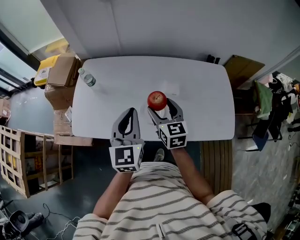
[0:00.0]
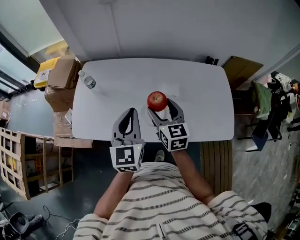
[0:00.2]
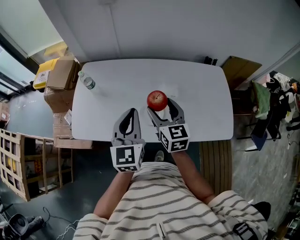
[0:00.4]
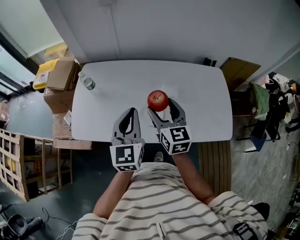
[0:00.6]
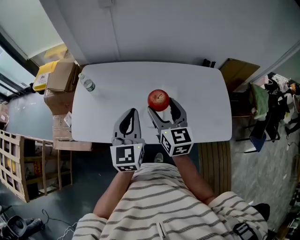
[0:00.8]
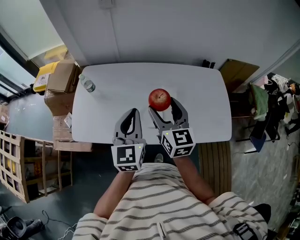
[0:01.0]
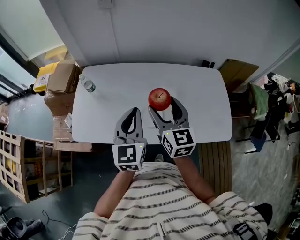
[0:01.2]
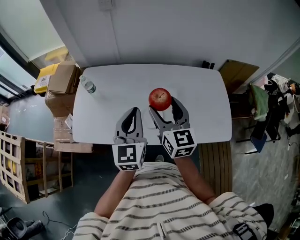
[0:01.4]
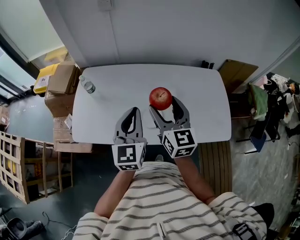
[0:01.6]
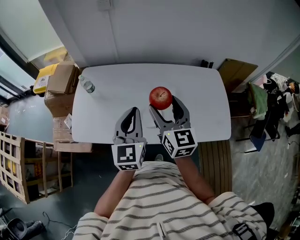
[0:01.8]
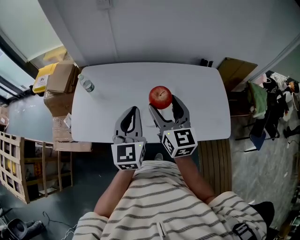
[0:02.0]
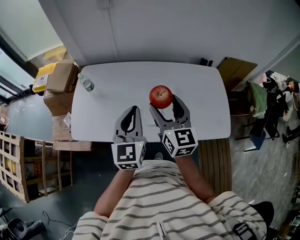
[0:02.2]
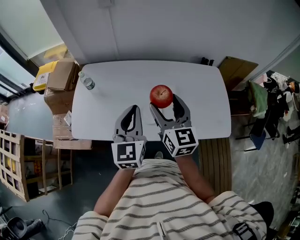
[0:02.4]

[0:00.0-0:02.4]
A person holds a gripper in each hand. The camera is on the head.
0:00.0 to 0:01.2: The right gripper travels upward by approximately 10 cm.
0:01.2 to 0:02.4: The grippers make only small movements.

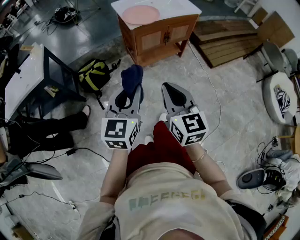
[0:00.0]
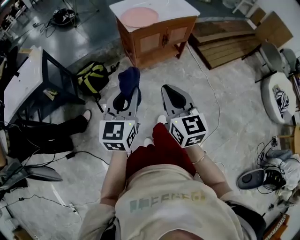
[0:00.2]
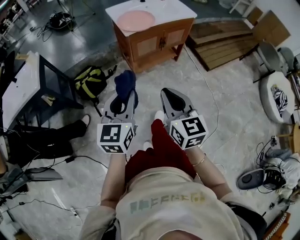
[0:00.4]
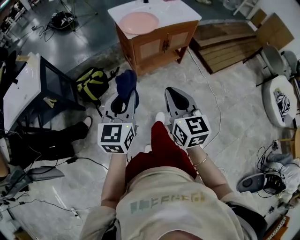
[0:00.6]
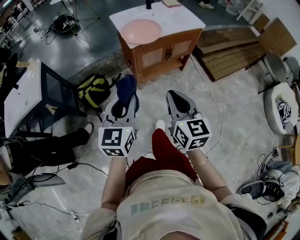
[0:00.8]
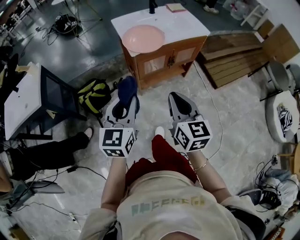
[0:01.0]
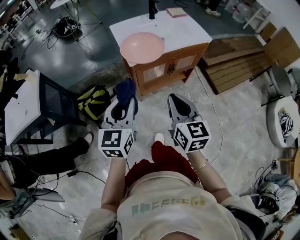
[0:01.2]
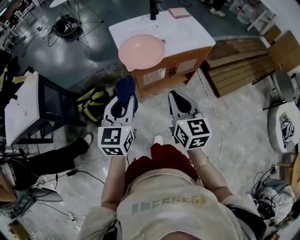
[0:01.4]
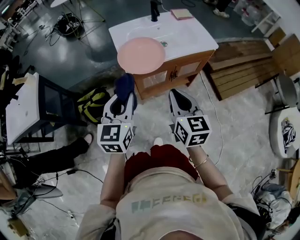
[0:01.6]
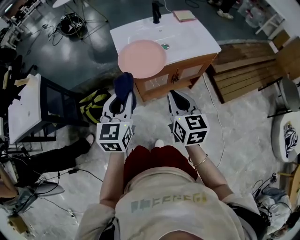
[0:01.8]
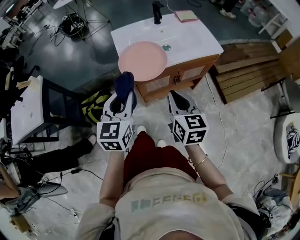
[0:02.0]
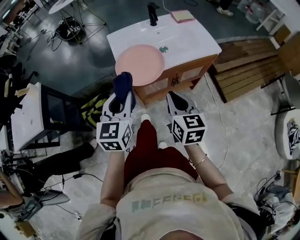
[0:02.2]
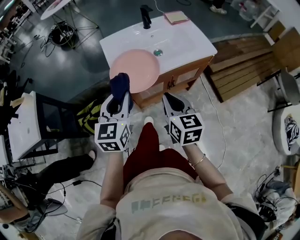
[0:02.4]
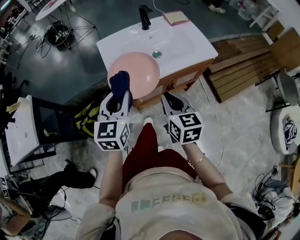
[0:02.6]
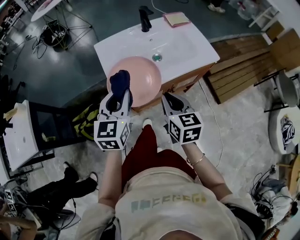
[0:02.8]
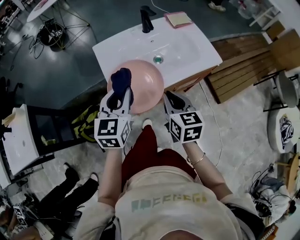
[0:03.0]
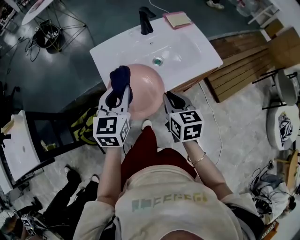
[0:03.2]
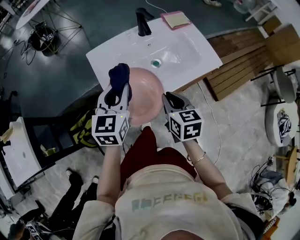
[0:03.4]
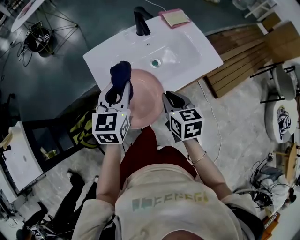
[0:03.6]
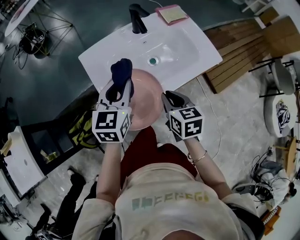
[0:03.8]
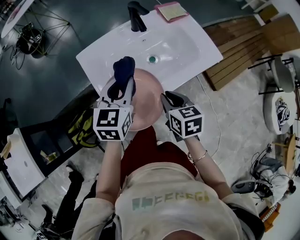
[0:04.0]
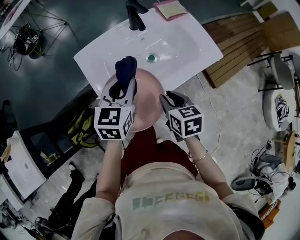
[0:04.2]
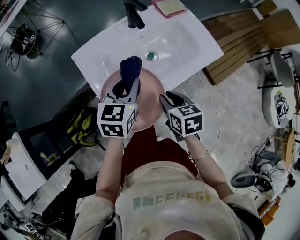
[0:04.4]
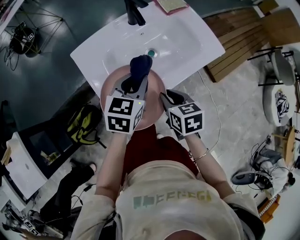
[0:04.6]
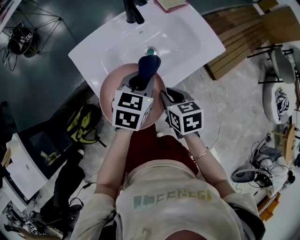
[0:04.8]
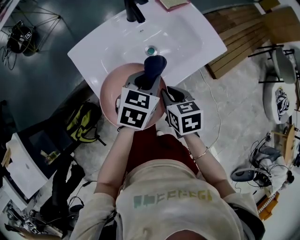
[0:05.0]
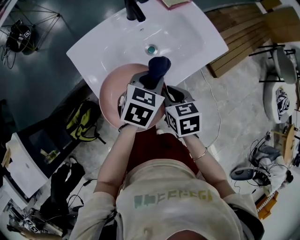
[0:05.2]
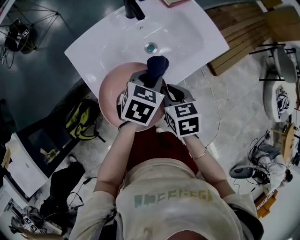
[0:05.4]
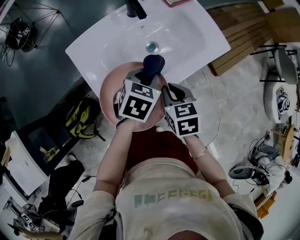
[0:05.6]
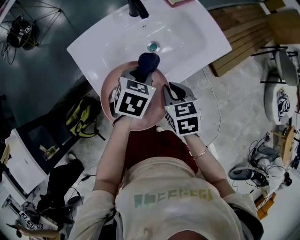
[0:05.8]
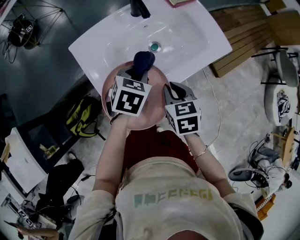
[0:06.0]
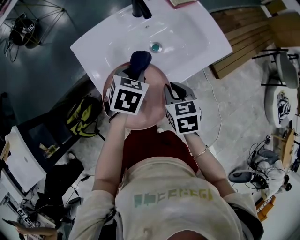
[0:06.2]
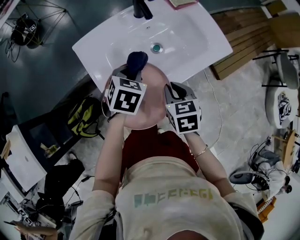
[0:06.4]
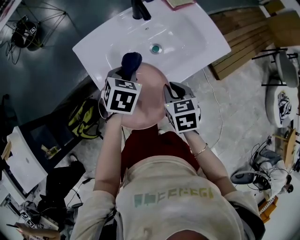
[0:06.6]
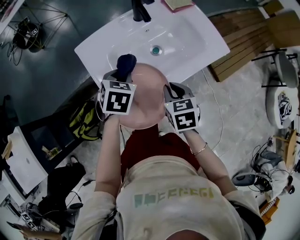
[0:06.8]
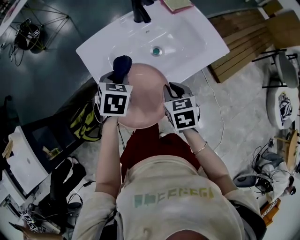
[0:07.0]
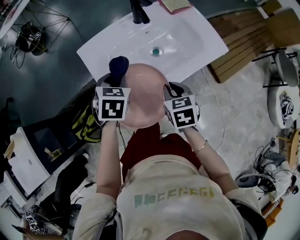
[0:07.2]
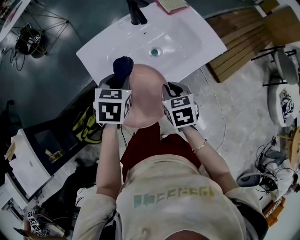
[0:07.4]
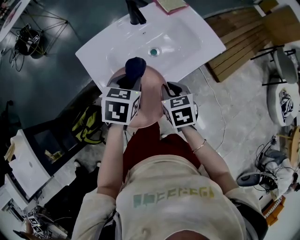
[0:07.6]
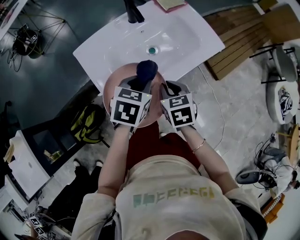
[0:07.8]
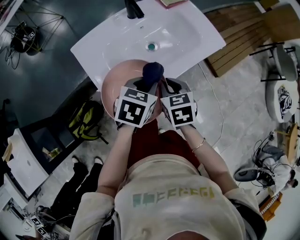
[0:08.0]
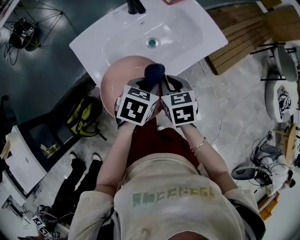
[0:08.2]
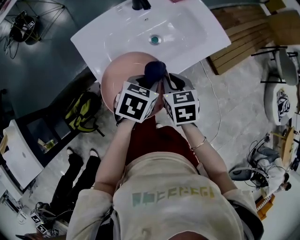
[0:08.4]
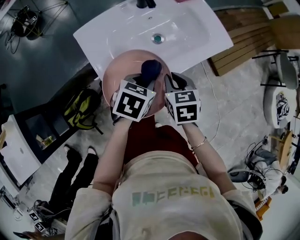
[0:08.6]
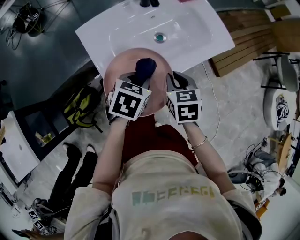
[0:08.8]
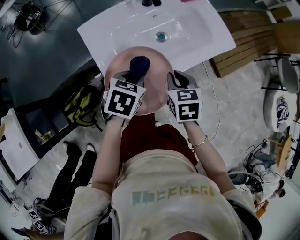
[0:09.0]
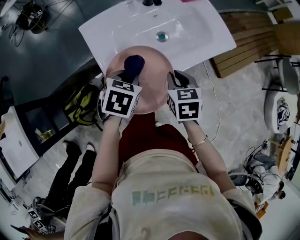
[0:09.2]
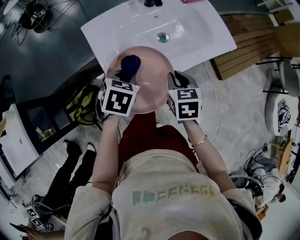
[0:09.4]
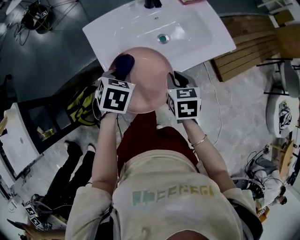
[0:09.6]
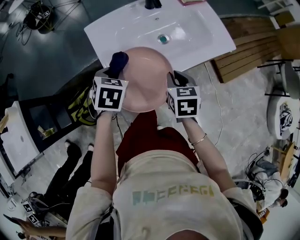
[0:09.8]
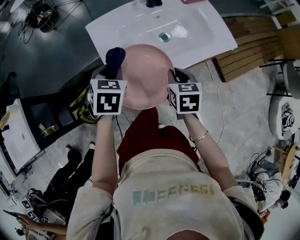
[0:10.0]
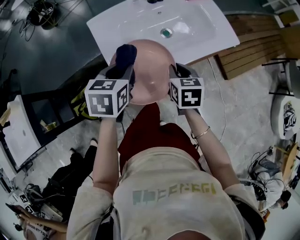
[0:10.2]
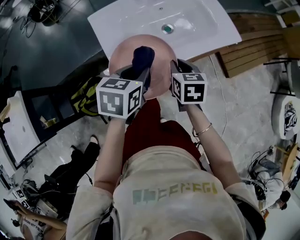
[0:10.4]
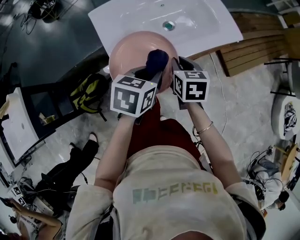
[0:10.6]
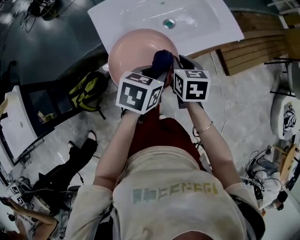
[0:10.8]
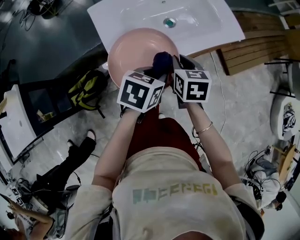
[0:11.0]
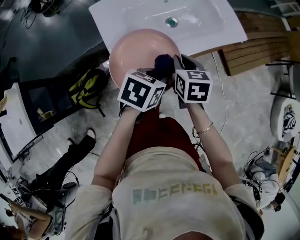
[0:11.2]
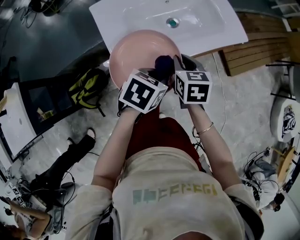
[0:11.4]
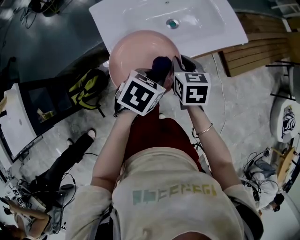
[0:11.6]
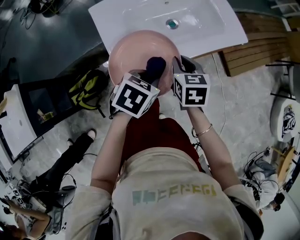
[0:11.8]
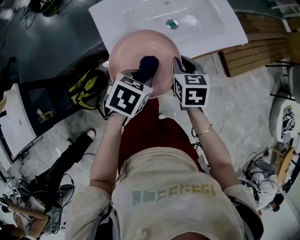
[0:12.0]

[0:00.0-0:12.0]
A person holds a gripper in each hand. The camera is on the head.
0:00.0 to 0:01.6: Both grippers move forward, roughly 35 cm.
0:01.6 to 0:03.0: The two grippers go about 20 cm forward.
0:03.0 to 0:04.4: The right gripper moves downward and forward, about 10 cm, and rotates some 20 degrees. Meanwhile the left gripper goes about 15 cm forward and downward.
0:04.4 to 0:06.0: The left gripper shifts some 10 cm downward, travels to the right and back again, roughly 10 cm each way, and rotates approximately 30 degrees.
0:06.0 to 0:07.6: The left gripper is displaced upward by some 5 cm, and moves approximately 10 cm to the left and comes back.
0:07.6 to 0:09.0: The left gripper goes approximately 5 cm downward.
0:09.0 to 0:10.4: The left gripper shifts approximately 5 cm upward, and travels to the left and back again, approximately 10 cm each way.
0:10.4 to 0:12.0: The left gripper goes roughly 5 cm downward, and rotates roughly 20 degrees.

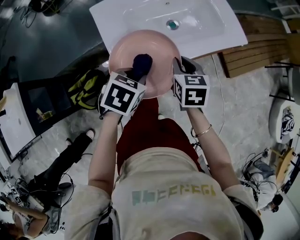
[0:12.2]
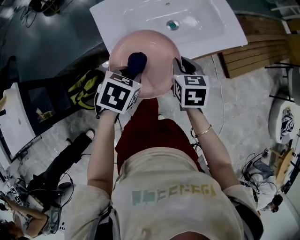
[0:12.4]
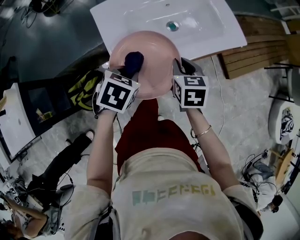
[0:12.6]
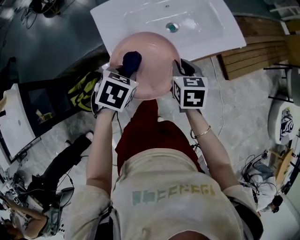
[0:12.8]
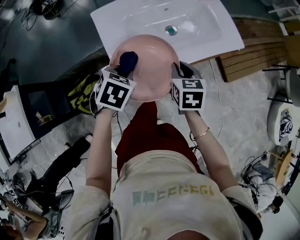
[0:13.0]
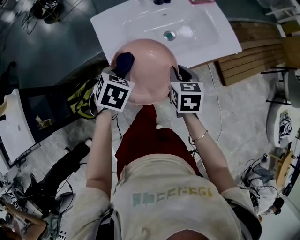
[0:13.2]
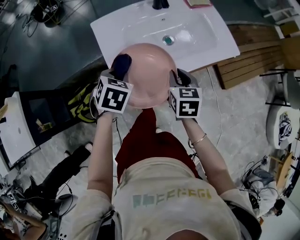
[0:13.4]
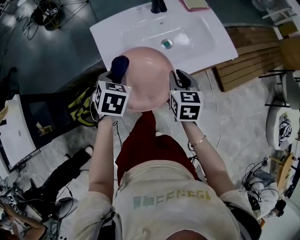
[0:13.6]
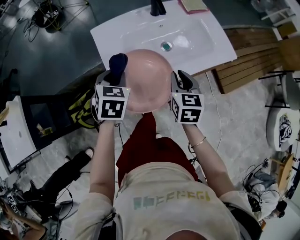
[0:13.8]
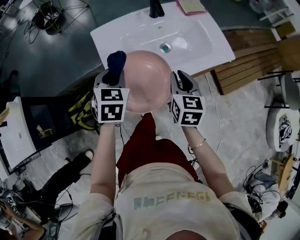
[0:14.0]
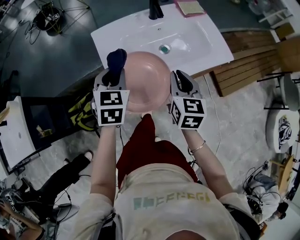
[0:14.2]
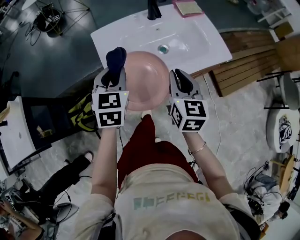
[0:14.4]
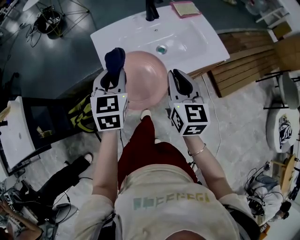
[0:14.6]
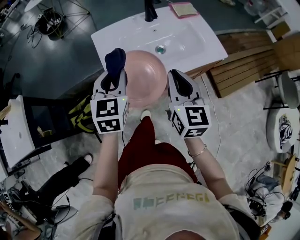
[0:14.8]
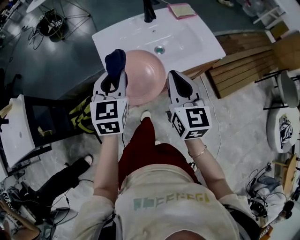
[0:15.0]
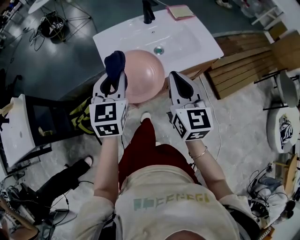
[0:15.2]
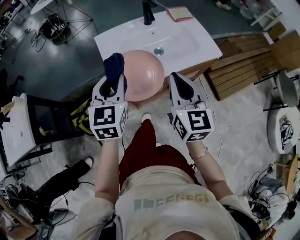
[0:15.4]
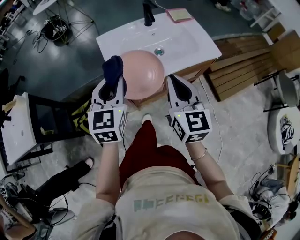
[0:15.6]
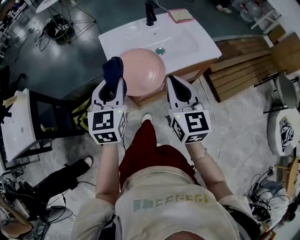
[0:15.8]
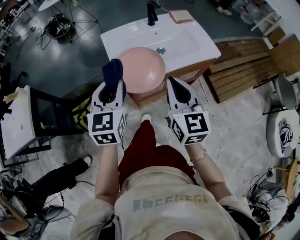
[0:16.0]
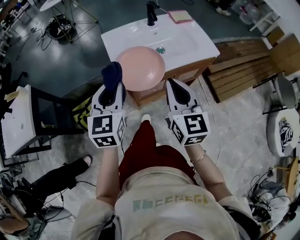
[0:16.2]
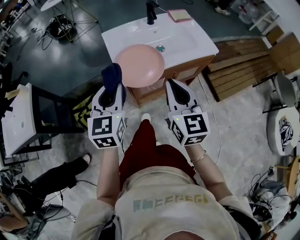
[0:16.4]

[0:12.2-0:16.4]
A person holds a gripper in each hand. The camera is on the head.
0:12.2 to 0:13.6: The left gripper is displaced to the left and forward by roughly 10 cm, and swivels about 20 degrees.
0:13.6 to 0:15.0: The right gripper goes some 15 cm upward and backward, and turns by roughly 30 degrees. Meanwhile the left gripper shifts about 15 cm upward, and tips its fingers upward by some 30 degrees.
0:15.0 to 0:16.4: Both grippers move backward, some 15 cm.

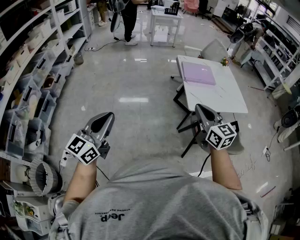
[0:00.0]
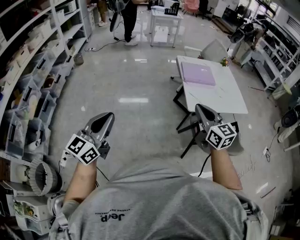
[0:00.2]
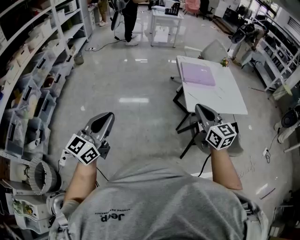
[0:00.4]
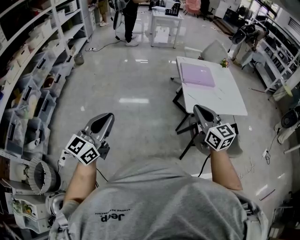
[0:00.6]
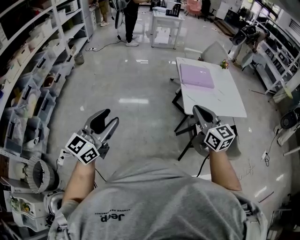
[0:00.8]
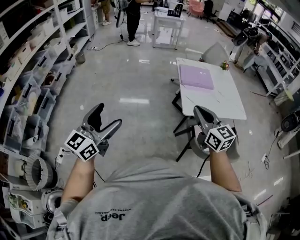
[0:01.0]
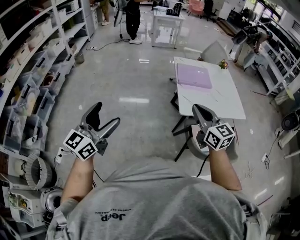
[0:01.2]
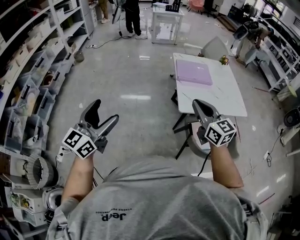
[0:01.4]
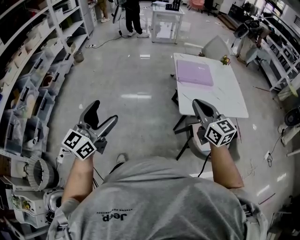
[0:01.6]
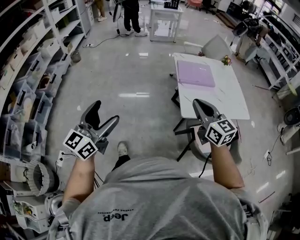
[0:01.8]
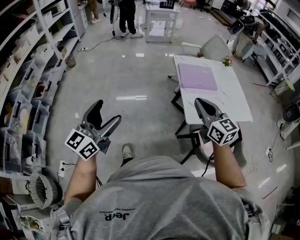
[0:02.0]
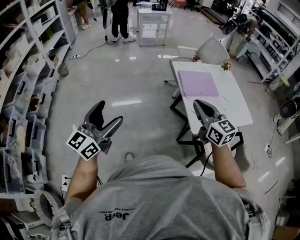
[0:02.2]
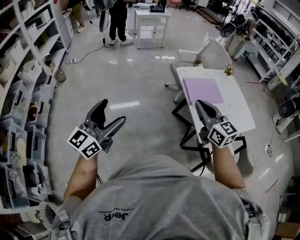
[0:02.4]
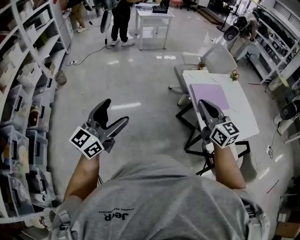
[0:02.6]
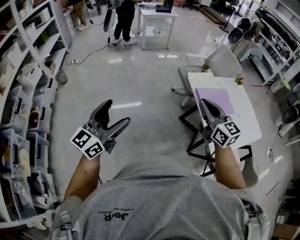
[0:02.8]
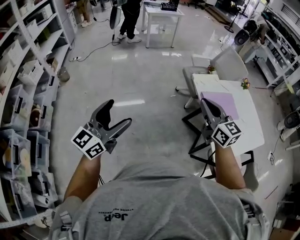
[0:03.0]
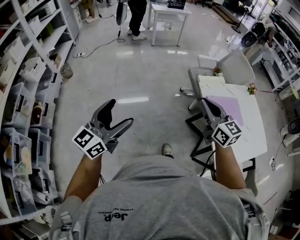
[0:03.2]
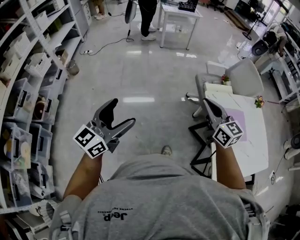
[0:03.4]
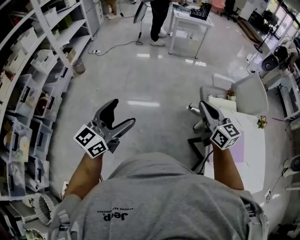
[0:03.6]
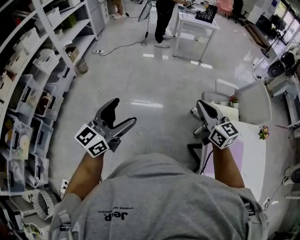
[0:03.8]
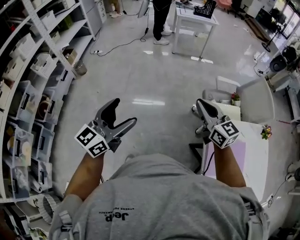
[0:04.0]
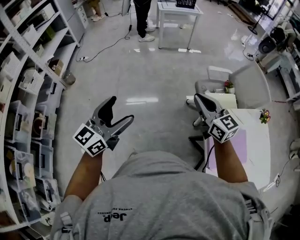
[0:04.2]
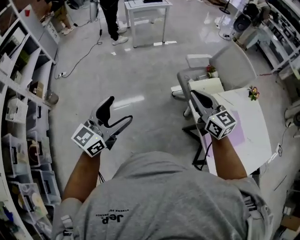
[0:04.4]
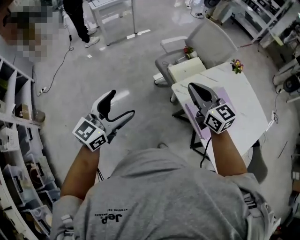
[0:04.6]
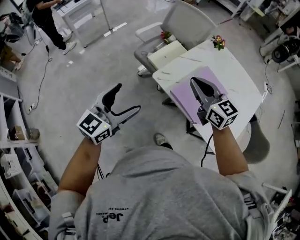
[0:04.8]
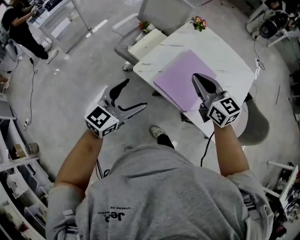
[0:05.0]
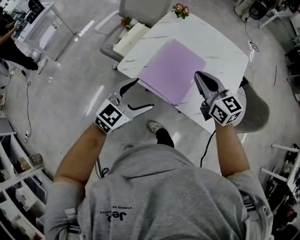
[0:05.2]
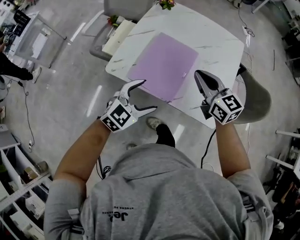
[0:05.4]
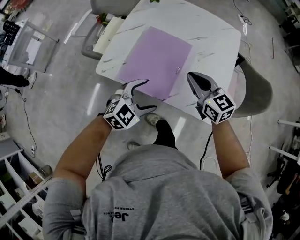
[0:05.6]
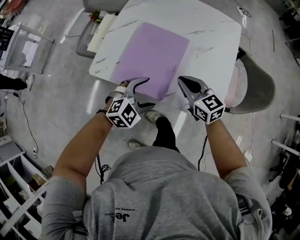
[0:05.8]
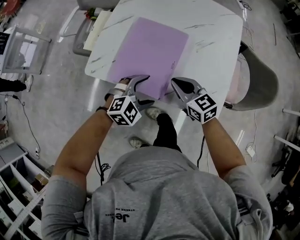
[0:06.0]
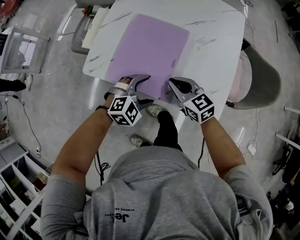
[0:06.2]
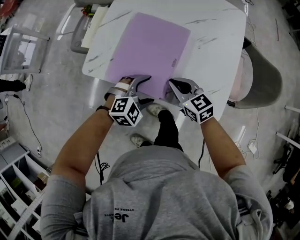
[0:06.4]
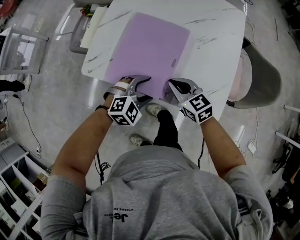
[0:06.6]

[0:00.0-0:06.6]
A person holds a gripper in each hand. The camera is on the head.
0:00.0 to 0:01.6: Both grippers travel together to the right and forward, about 10 cm. The left gripper opens.
0:01.6 to 0:03.2: The two grippers travel together, forward and to the left, approximately 50 cm.
0:03.2 to 0:05.0: The left gripper moves some 50 cm, and turns by some 60 degrees; the right gripper changes place by some 30 cm, and turns by roughly 40 degrees.
0:05.0 to 0:06.6: Both grippers travel together downward and to the right, approximately 30 cm. The right gripper changes its angle by some 20 degrees, while the left gripper points its fingers about 40 degrees further downward.
